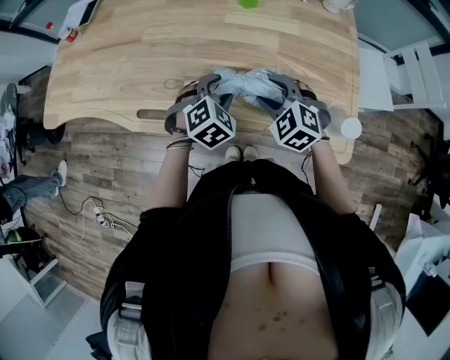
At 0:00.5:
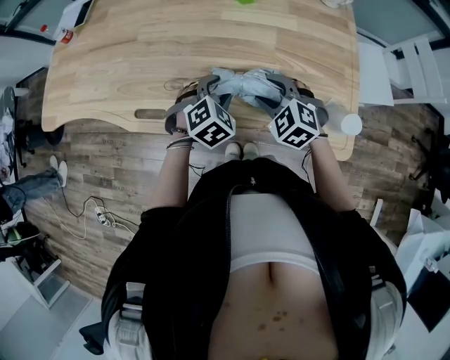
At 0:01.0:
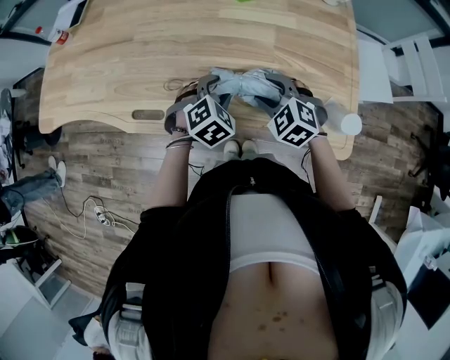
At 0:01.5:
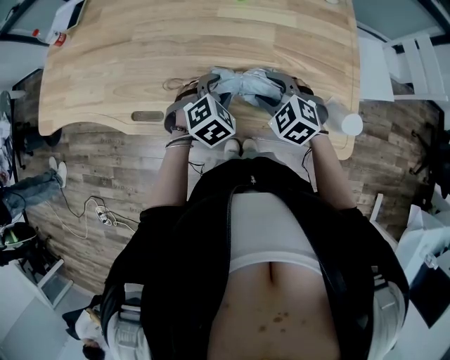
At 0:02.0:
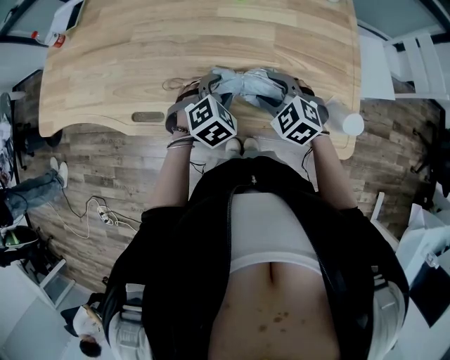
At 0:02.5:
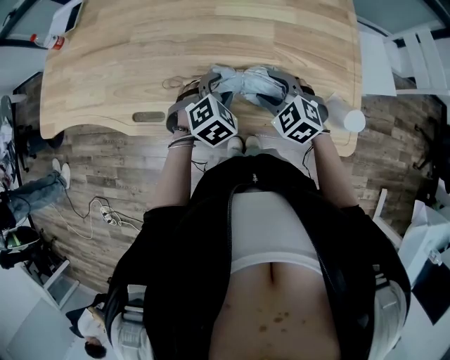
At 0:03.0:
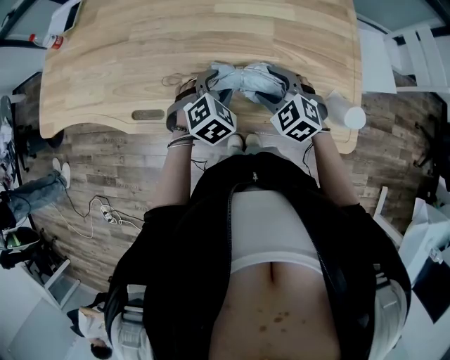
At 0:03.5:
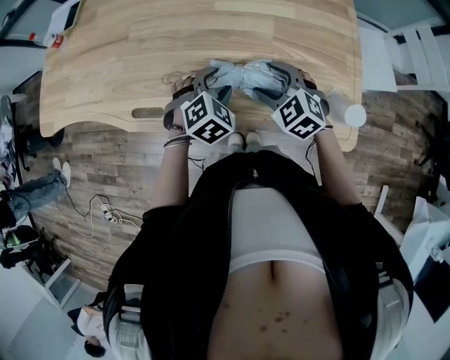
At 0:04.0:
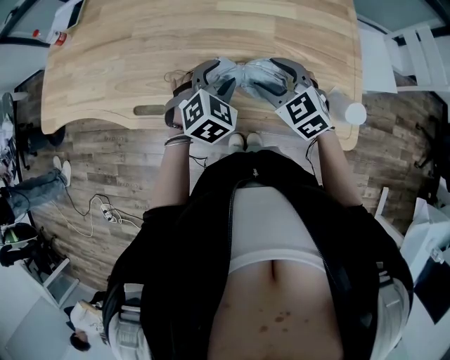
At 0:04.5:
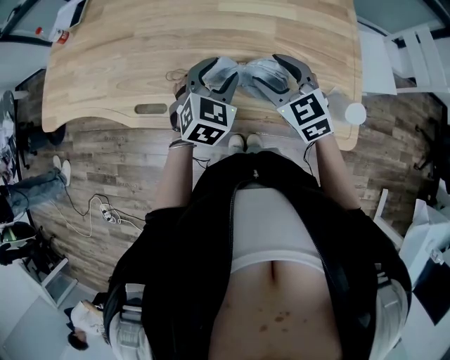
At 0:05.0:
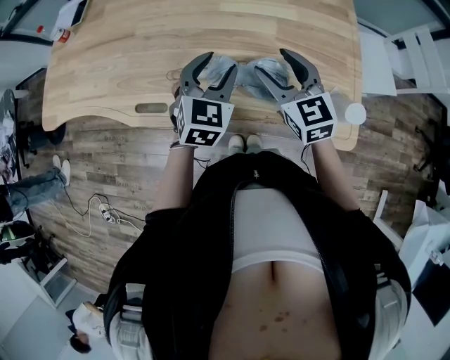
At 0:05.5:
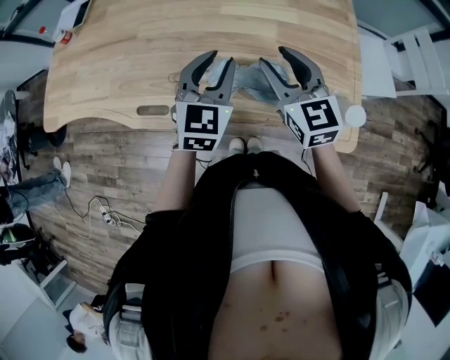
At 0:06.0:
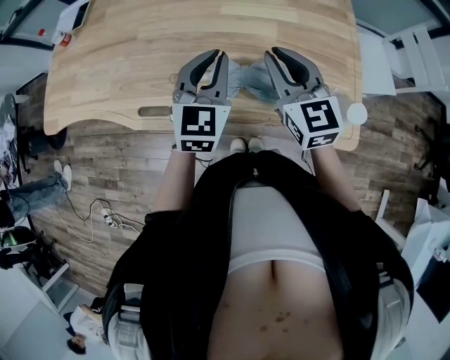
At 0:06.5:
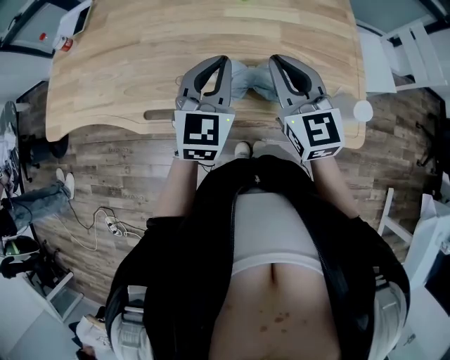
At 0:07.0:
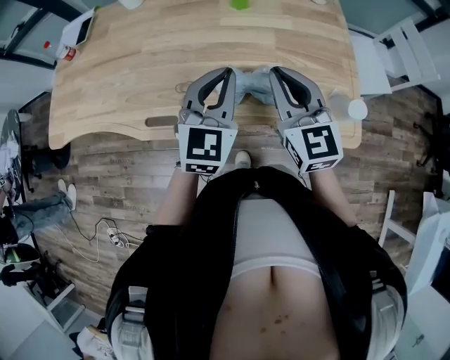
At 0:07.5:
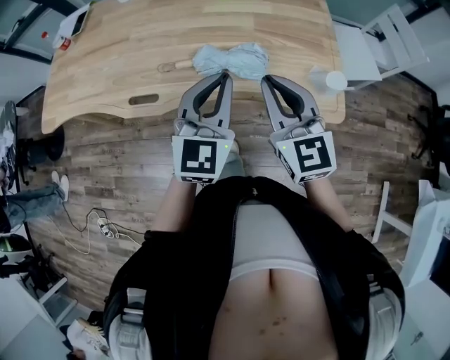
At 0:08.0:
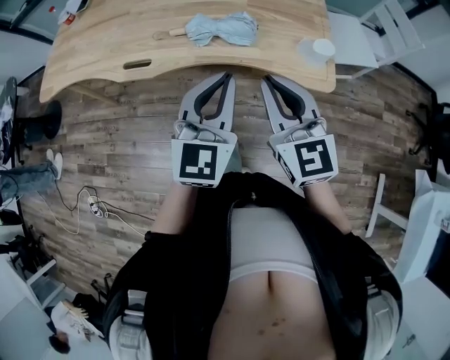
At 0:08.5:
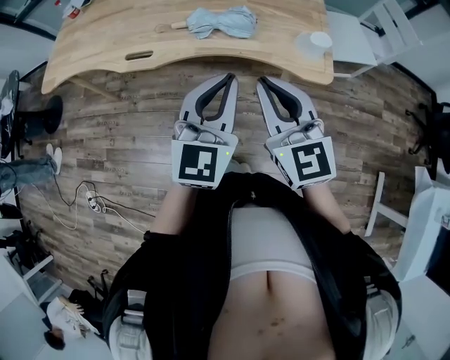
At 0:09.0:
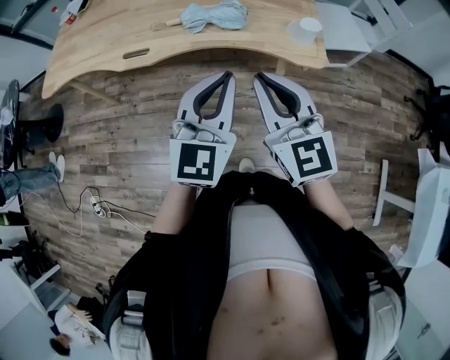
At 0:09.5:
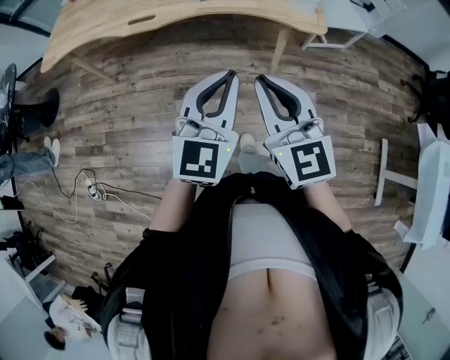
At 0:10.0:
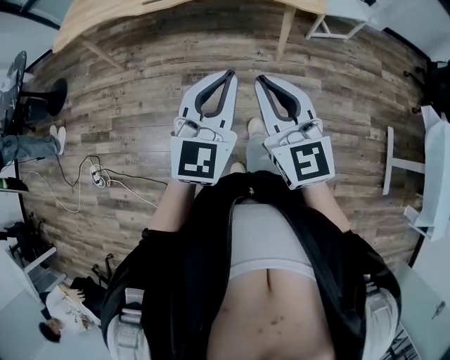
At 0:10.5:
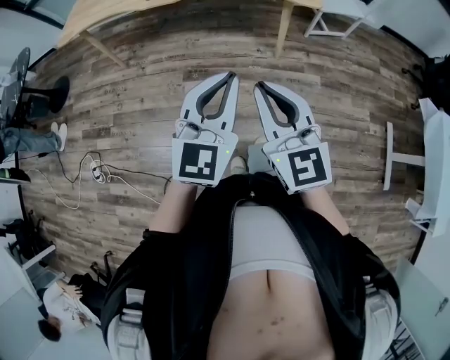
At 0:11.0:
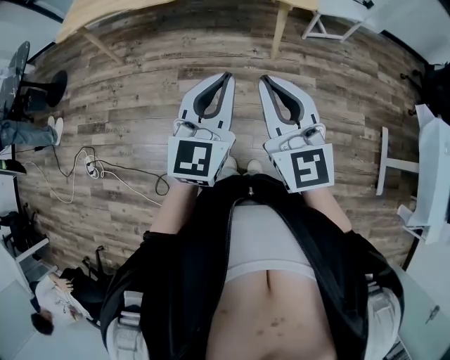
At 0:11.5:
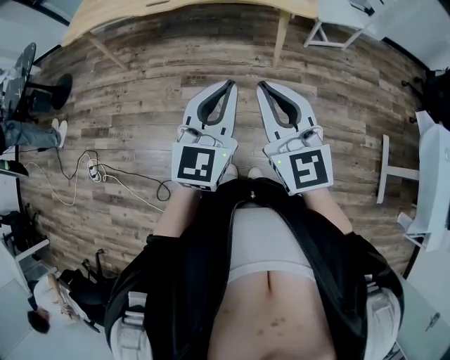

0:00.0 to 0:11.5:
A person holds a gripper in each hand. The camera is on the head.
0:00.0 to 0:02.0: The grippers stay close to where they were, moving slightly.
0:02.0 to 0:04.0: Both grippers move upward, roughly 5 cm.
0:04.0 to 0:06.0: Both grippers travel together upward, approximately 10 cm. The right gripper swivels about 30 degrees, and closes. Meanwhile the left gripper tips its fingers upward by approximately 30 degrees, and closes up.
0:06.0 to 0:07.5: The grippers both shift backward by roughly 15 cm.
0:07.5 to 0:09.5: The two grippers go some 35 cm backward.
0:09.5 to 0:11.5: Both grippers travel together backward, approximately 20 cm.

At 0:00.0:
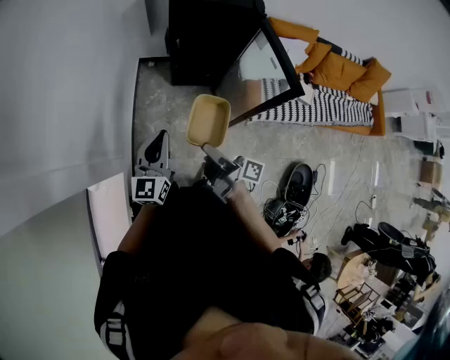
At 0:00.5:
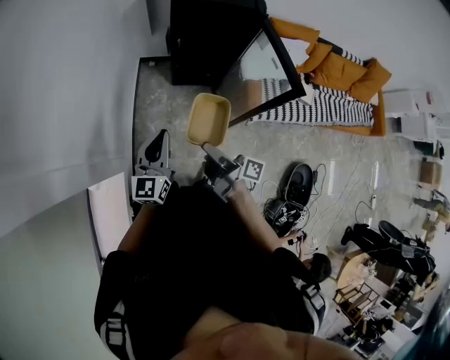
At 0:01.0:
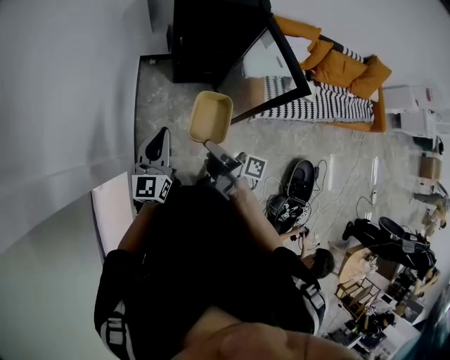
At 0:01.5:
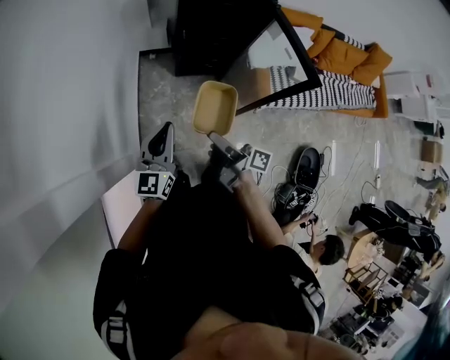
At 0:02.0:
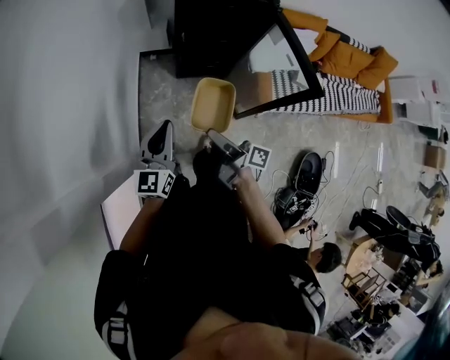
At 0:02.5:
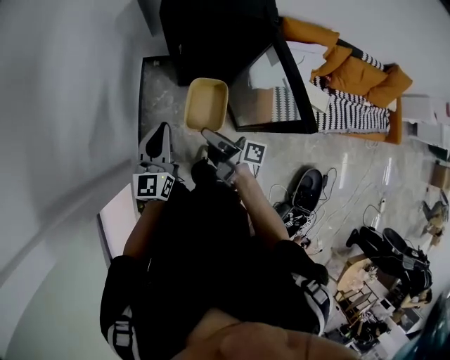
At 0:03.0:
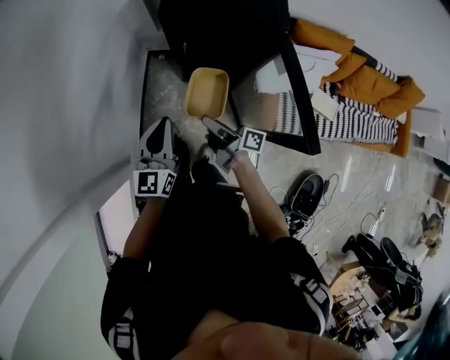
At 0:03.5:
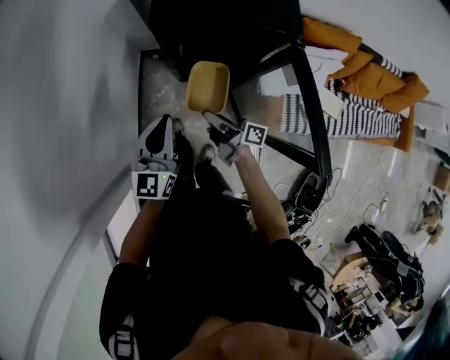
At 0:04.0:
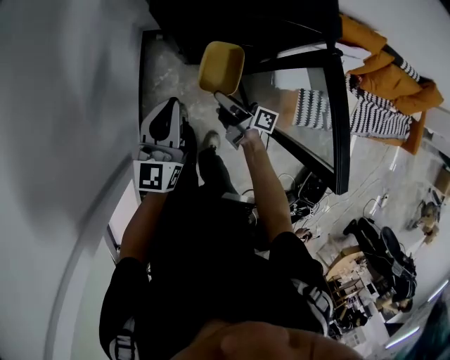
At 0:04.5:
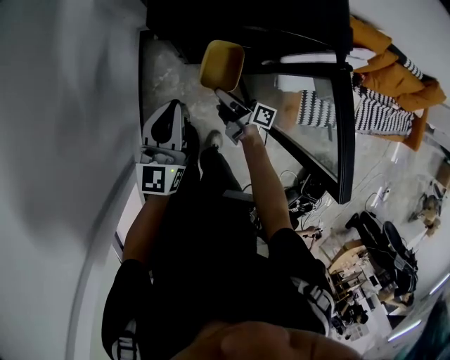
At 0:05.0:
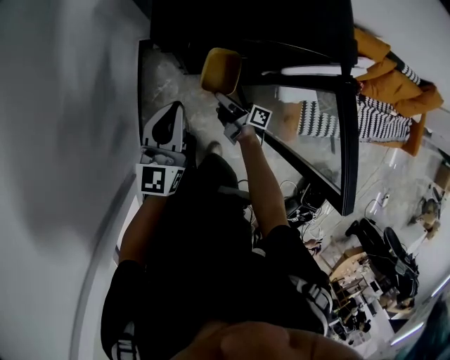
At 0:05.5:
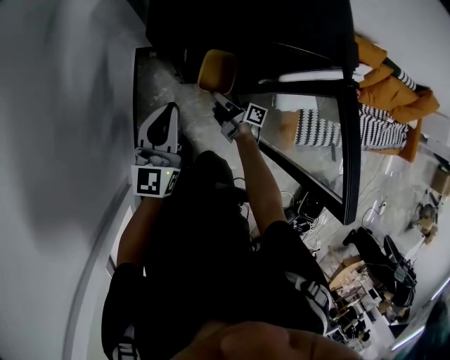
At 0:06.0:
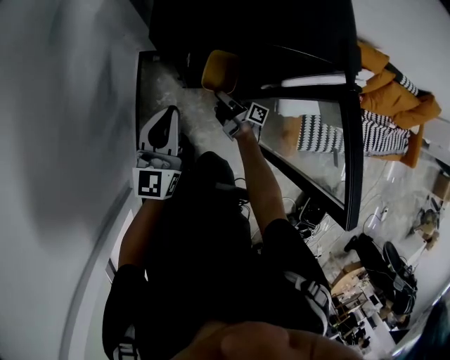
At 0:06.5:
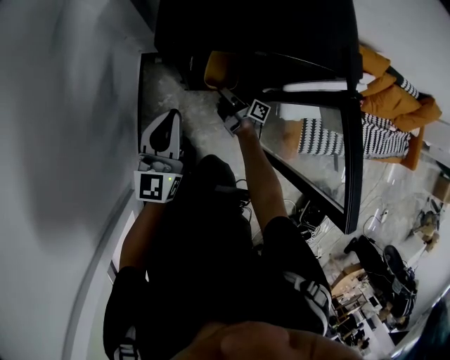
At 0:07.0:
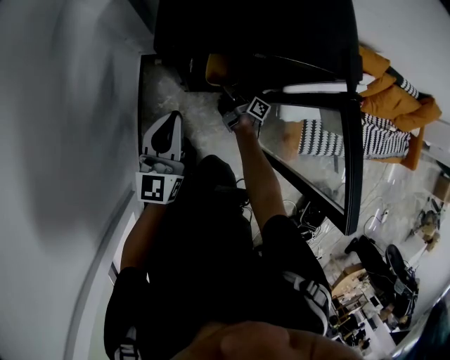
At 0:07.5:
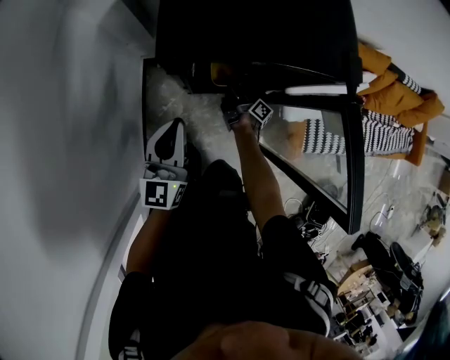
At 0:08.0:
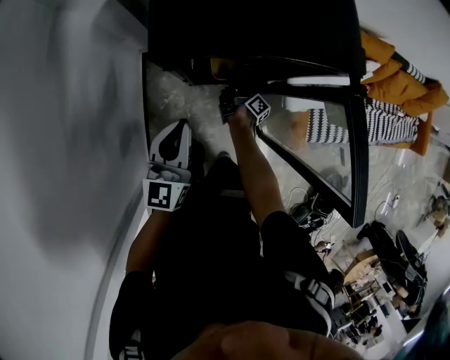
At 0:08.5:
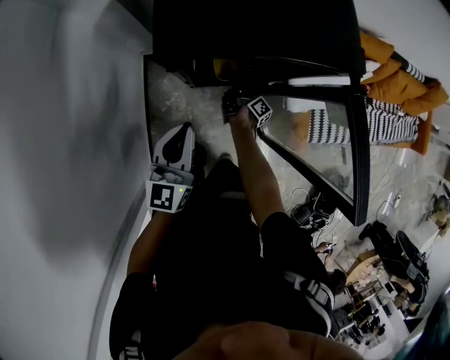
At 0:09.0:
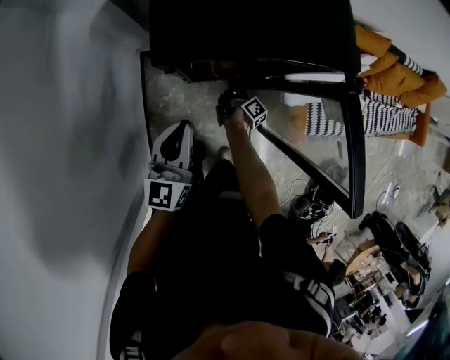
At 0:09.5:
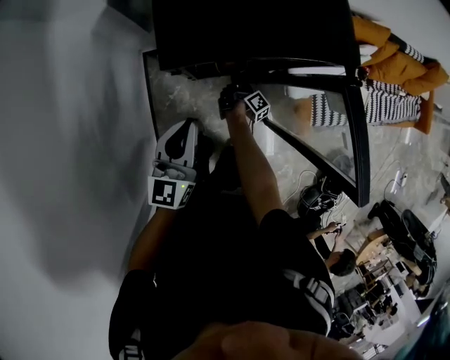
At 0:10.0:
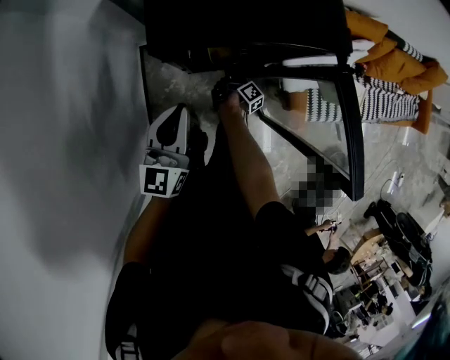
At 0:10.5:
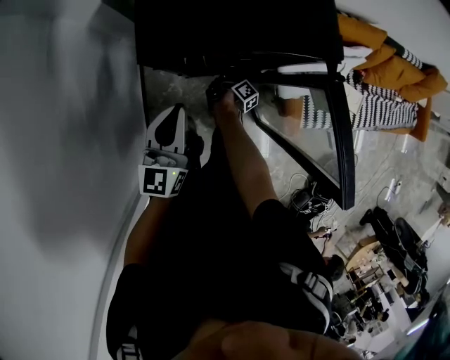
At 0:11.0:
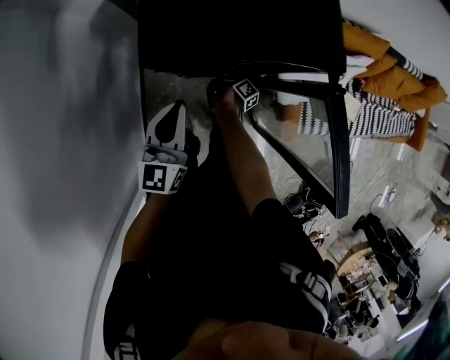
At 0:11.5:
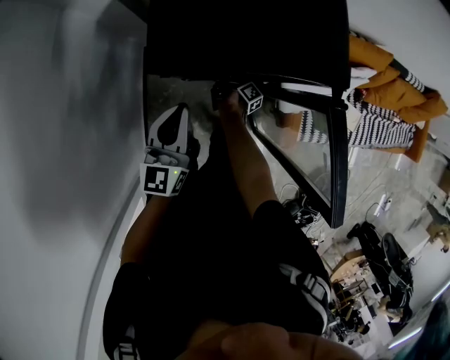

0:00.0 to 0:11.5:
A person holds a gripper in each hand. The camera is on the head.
0:00.0 to 0:02.0: The left gripper moves some 10 cm.
0:02.0 to 0:04.0: The left gripper ends up approximately 35 cm from where it was.
0:04.0 to 0:06.0: The left gripper moves about 10 cm.

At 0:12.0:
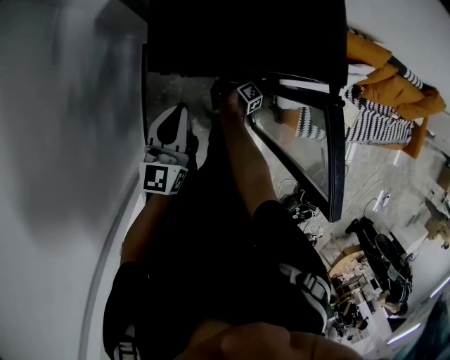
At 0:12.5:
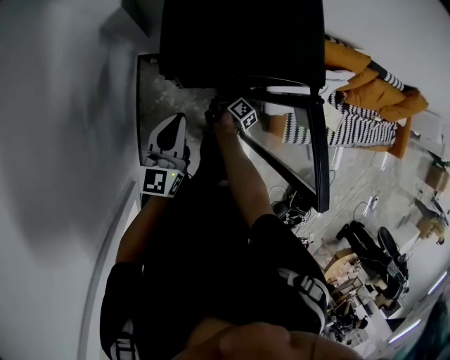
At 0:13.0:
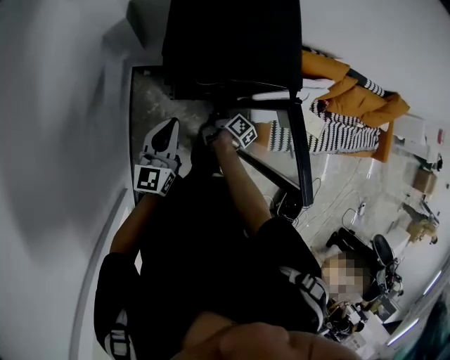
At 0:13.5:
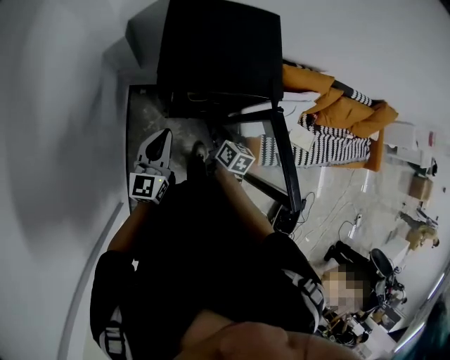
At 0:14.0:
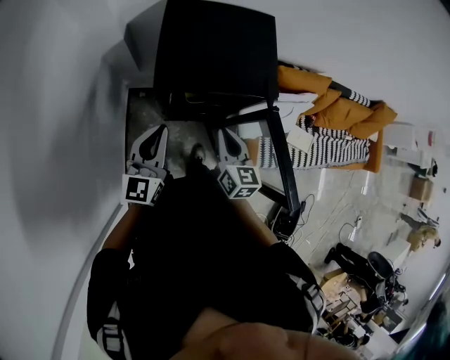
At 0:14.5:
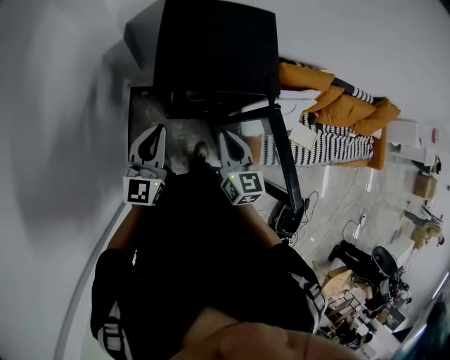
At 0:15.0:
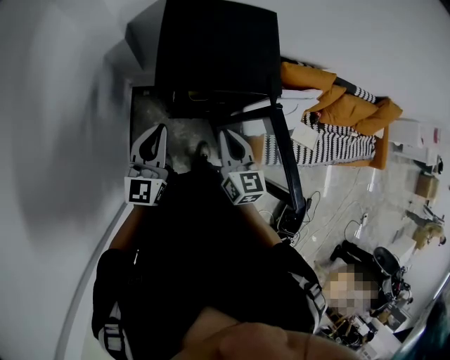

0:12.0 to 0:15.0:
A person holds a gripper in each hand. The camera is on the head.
0:12.0 to 0:13.5: The left gripper is displaced upward by roughly 10 cm.
0:13.5 to 0:15.0: The left gripper moves upward, some 5 cm.

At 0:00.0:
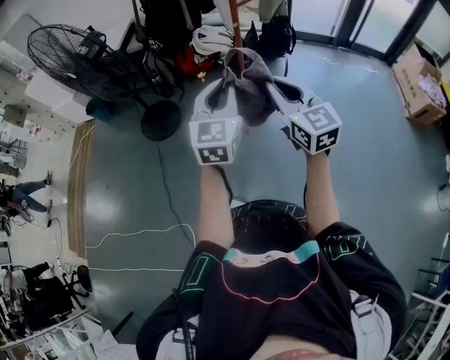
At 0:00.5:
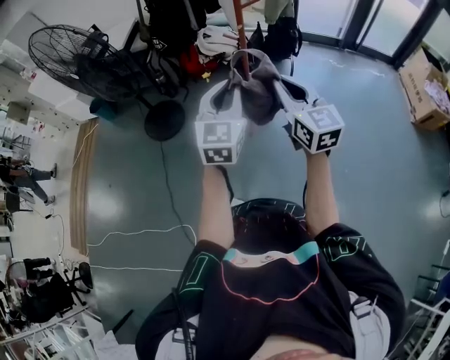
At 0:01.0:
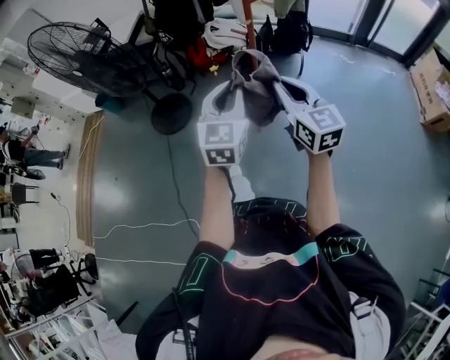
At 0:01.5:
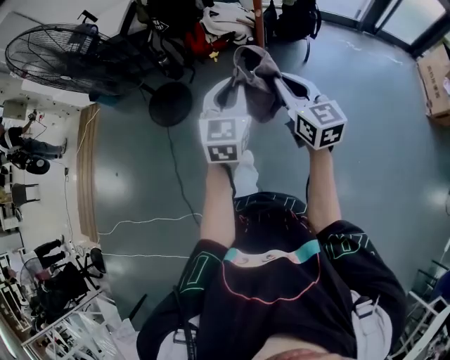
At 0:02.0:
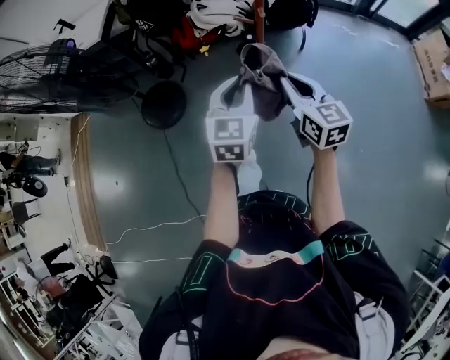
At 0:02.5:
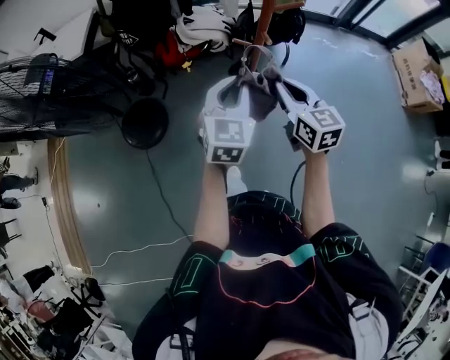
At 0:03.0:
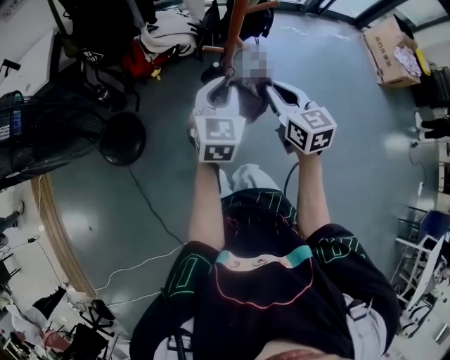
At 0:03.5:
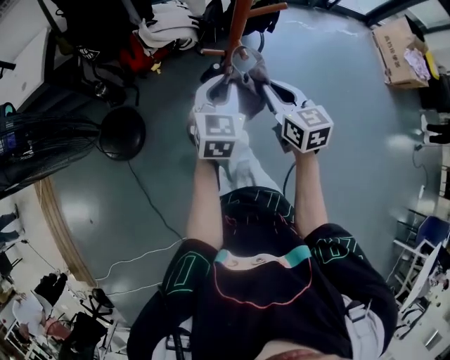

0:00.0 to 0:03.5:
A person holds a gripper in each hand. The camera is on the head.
0:00.0 to 0:02.0: The grippers both shift forward and downward by some 25 cm.
0:02.0 to 0:03.5: The two grippers go some 15 cm forward.
